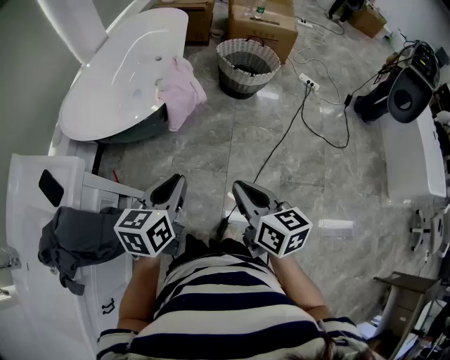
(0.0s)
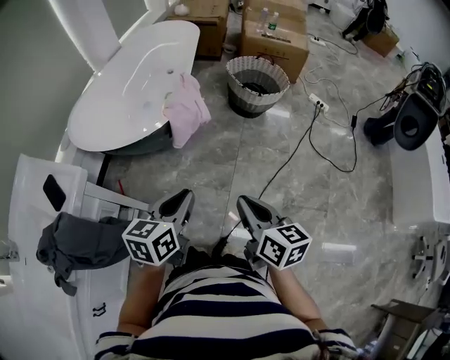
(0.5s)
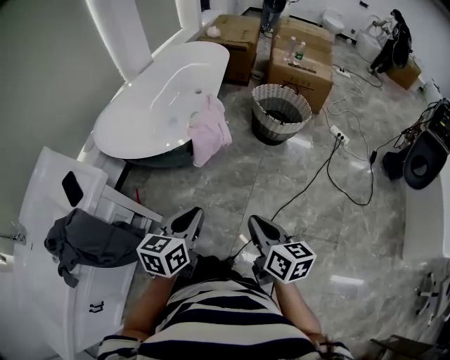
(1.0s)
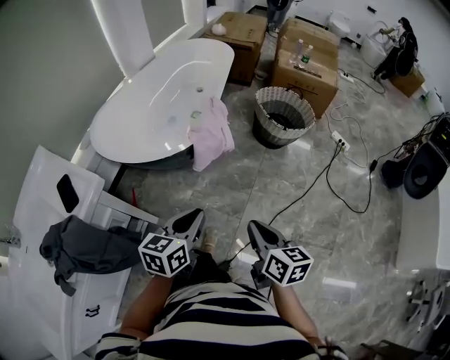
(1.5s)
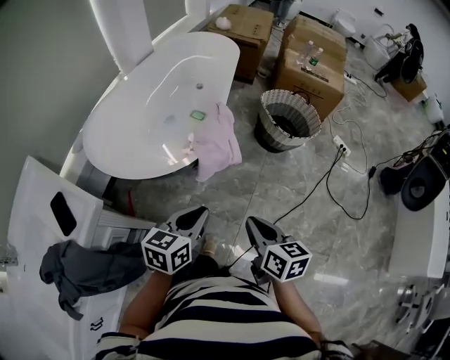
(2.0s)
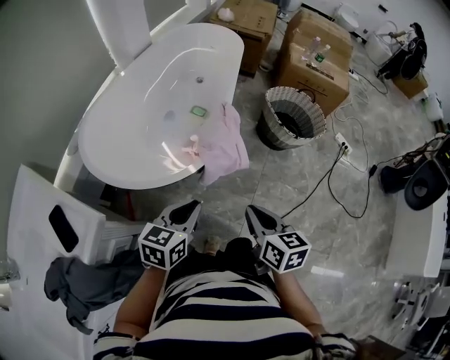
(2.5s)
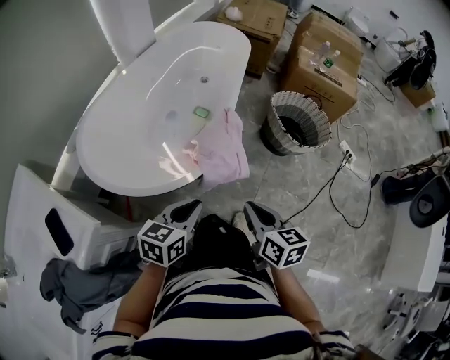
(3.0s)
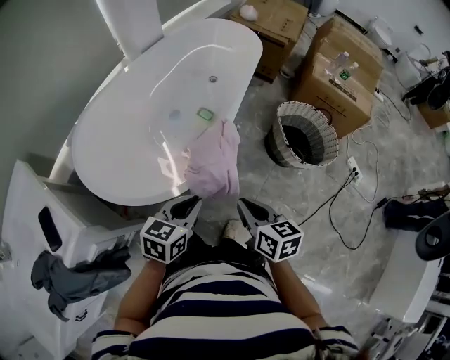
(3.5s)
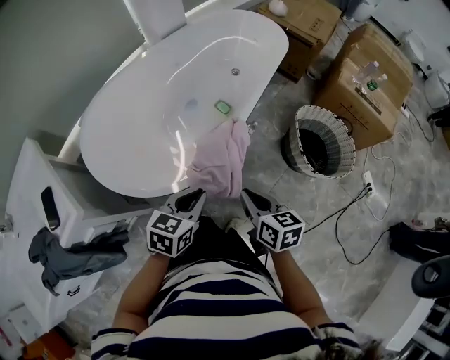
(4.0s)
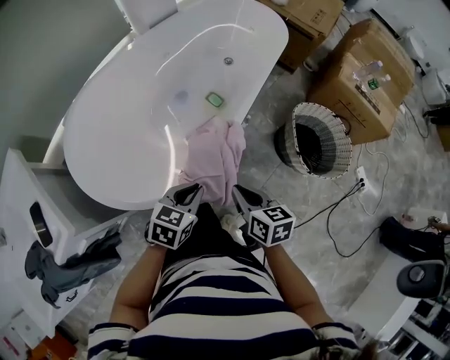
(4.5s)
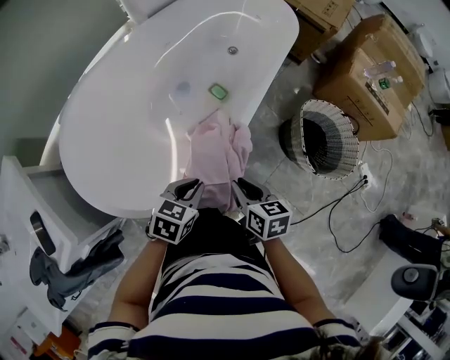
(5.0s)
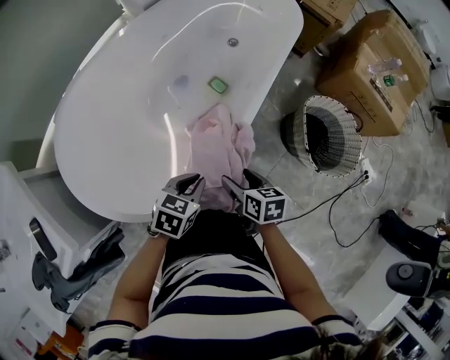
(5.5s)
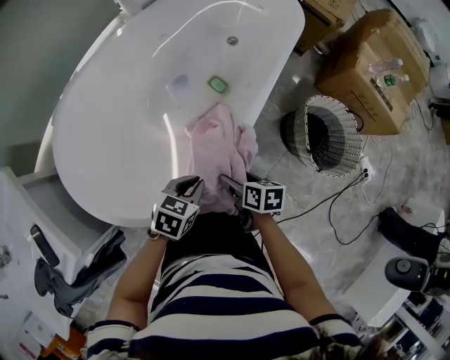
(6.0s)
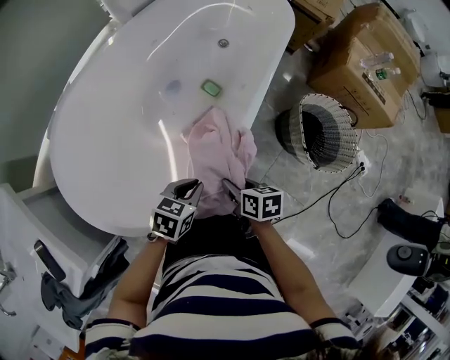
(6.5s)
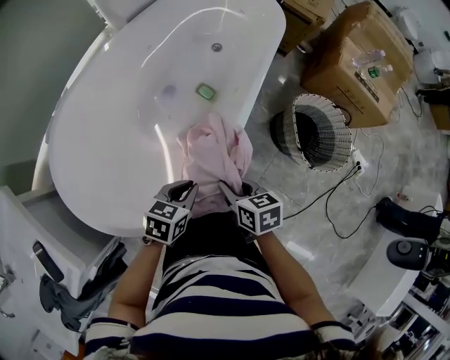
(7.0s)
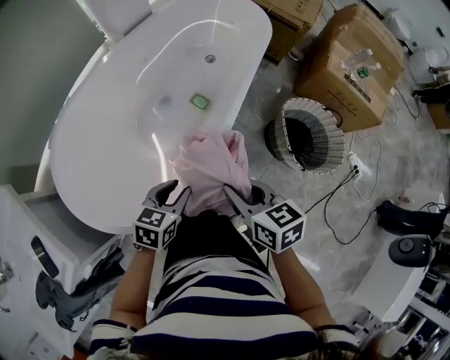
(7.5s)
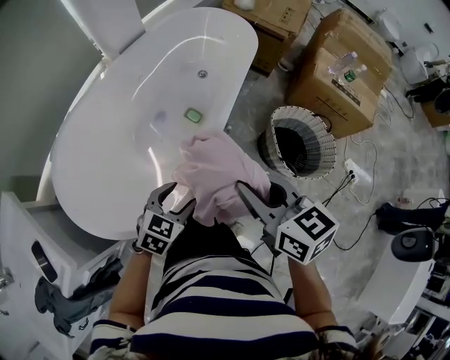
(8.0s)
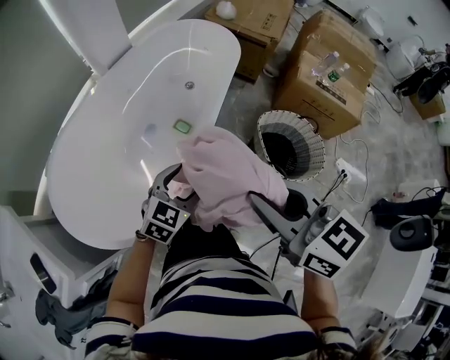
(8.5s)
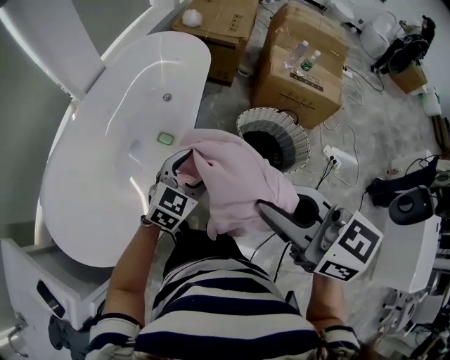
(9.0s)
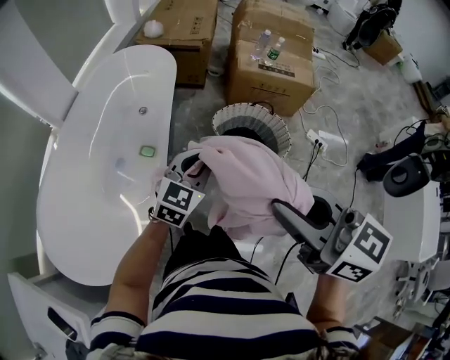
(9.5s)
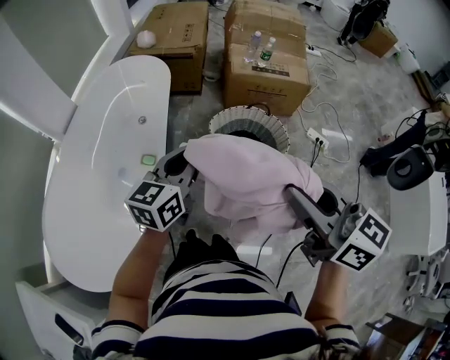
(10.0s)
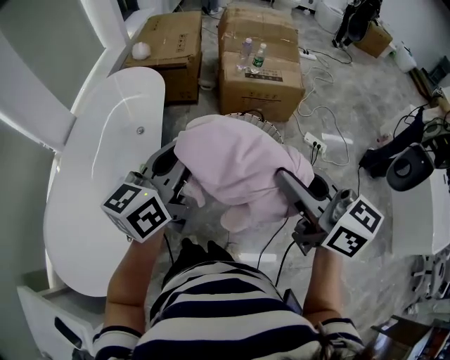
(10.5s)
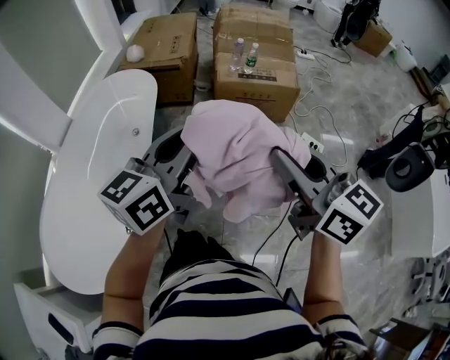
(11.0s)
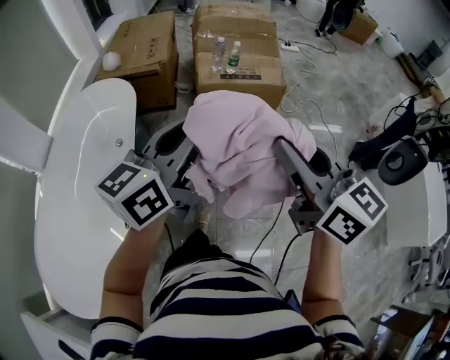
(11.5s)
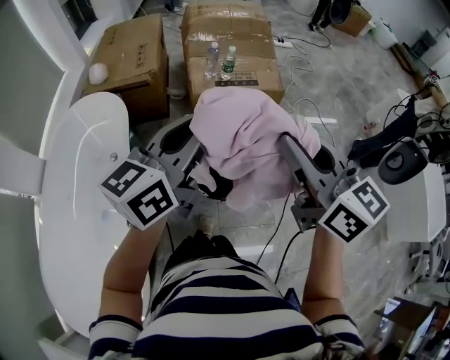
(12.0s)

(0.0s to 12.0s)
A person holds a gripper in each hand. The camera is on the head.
0.0s - 2.0s: The grippers both shift forward by roughly 15 cm.
2.0s - 4.0s: The grippers both shift forward by about 25 cm. The right gripper changes its angle by approximately 20 degrees. The left gripper changes its angle by roughly 20 degrees.
4.0s - 6.0s: Both grippers move downward and forward, about 15 cm. The right gripper changes its angle by approximately 30 degrees, and opens its fingers.
6.0s - 8.0s: The right gripper moves upward, roughly 30 cm, swivels some 40 degrees, and closes its fingers. The left gripper is displaced upward by roughly 5 cm, swivels about 20 degrees, and opens its fingers.
8.0s - 10.0s: The left gripper heads to the right, upward and forward, covering about 30 cm, points its fingers some 30 degrees further upward, and closes. The right gripper shifts roughly 25 cm to the right and upward, and swivels about 30 degrees.
10.0s - 12.0s: The left gripper shifts some 25 cm forward, to the right and upward, and rotates roughly 20 degrees. The right gripper is displaced forward and to the right by about 25 cm, and rotates about 20 degrees.

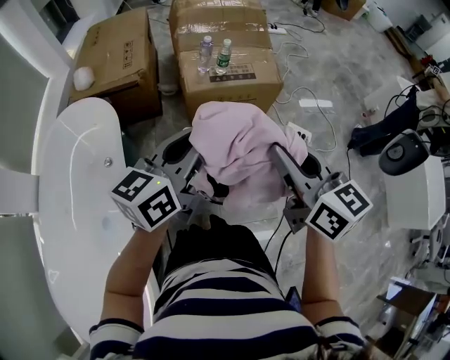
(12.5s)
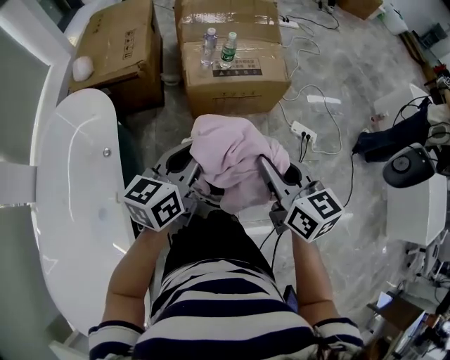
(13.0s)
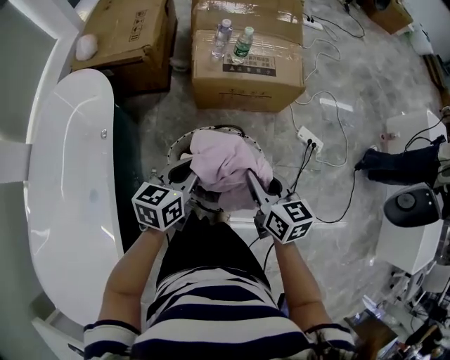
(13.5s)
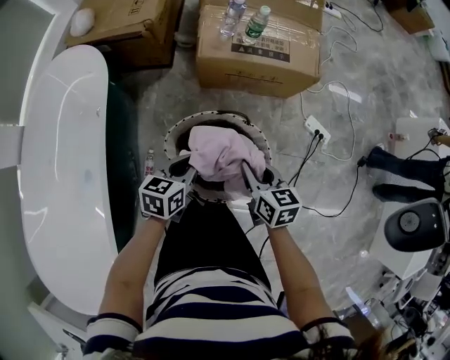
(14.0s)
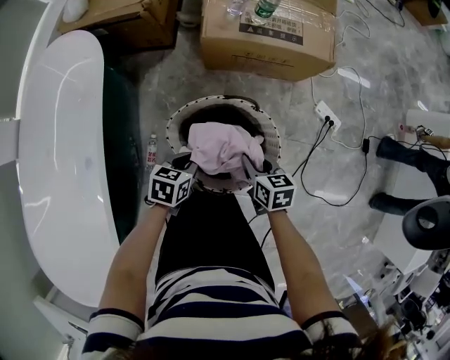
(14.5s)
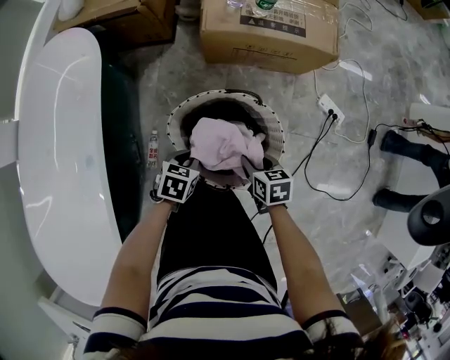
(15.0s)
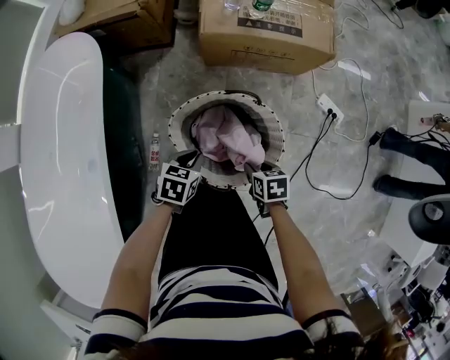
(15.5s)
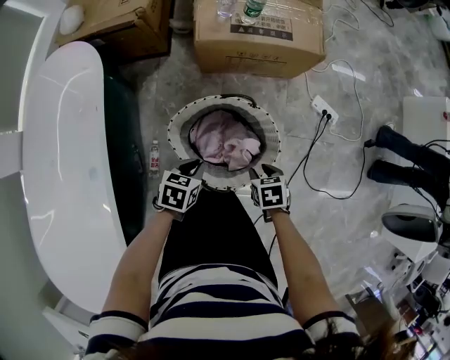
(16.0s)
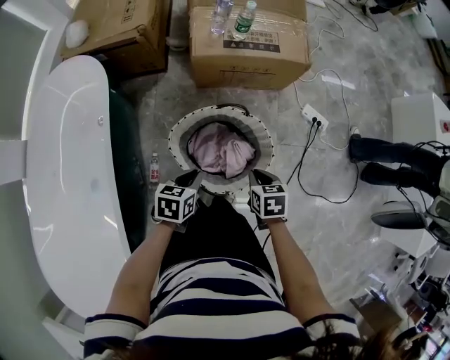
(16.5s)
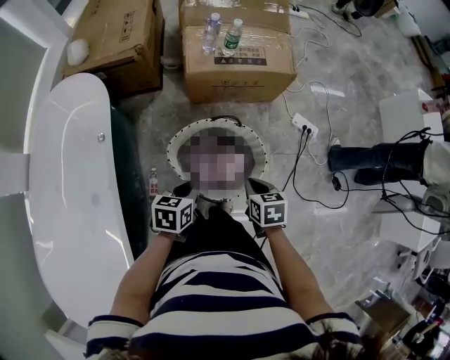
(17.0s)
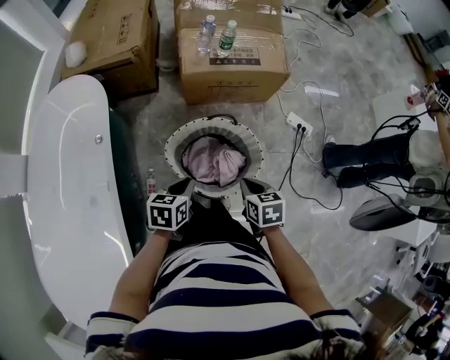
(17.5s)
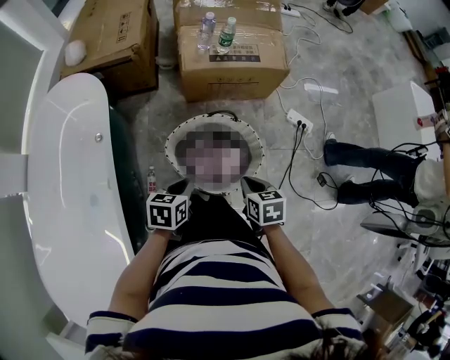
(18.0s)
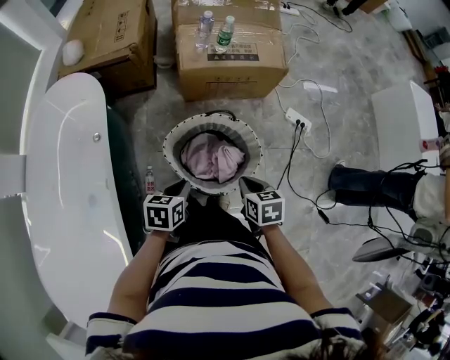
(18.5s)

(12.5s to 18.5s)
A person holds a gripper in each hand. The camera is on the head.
12.5s - 14.5s: Both grippers move downward, some 40 cm. The left gripper points its fingers some 50 degrees further downward, while the right gripper angles its fingers downward, by about 30 degrees.
14.5s - 16.5s: The right gripper moves backward, roughly 5 cm; the left gripper shifts some 5 cm upward.
16.5s - 18.5s: The right gripper moves upward, some 5 cm; the left gripper changes place by about 5 cm.

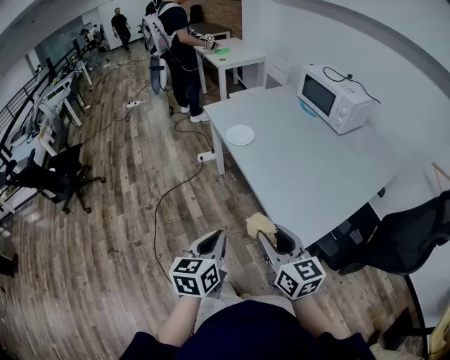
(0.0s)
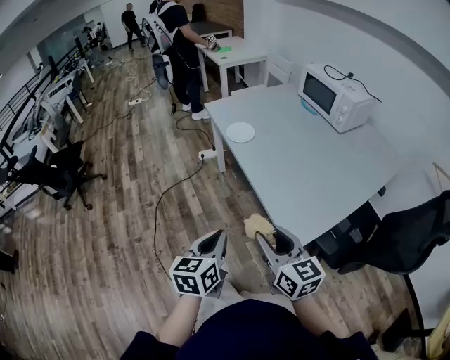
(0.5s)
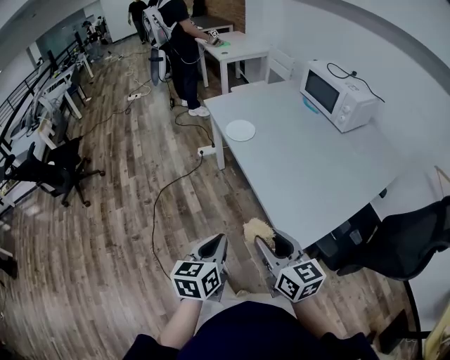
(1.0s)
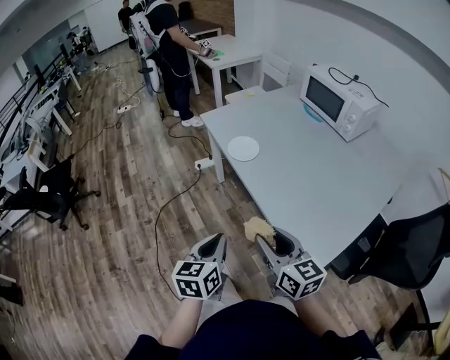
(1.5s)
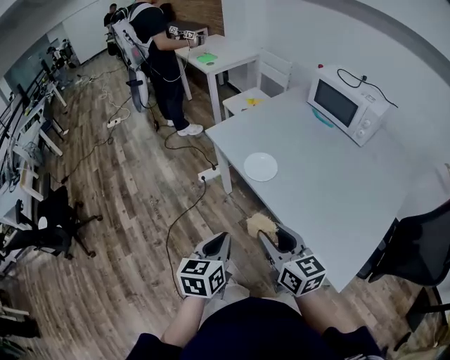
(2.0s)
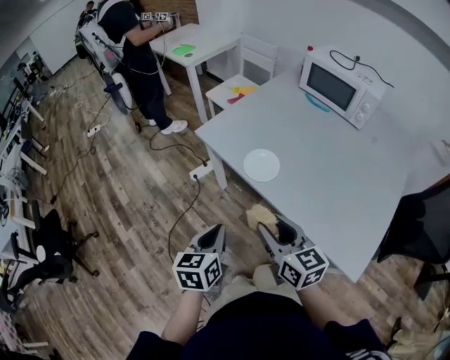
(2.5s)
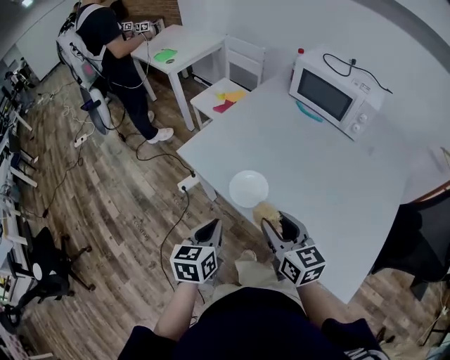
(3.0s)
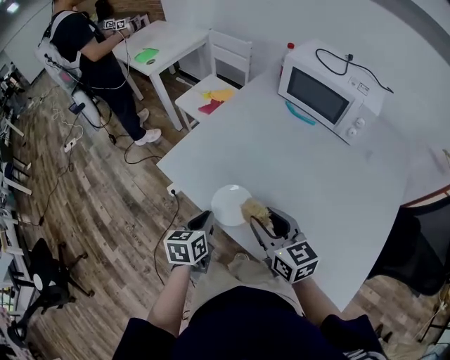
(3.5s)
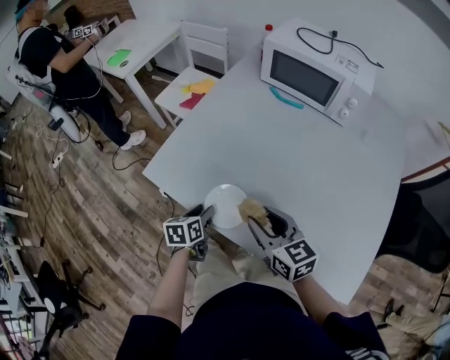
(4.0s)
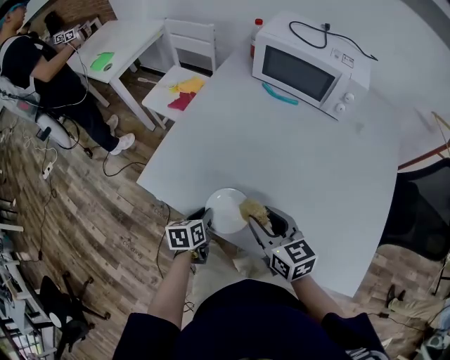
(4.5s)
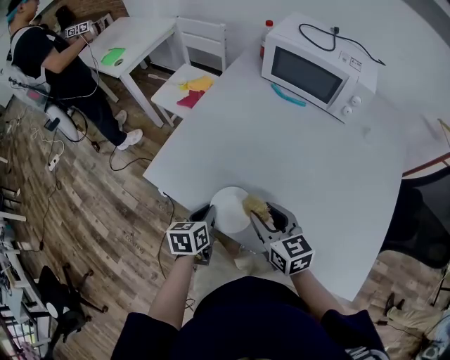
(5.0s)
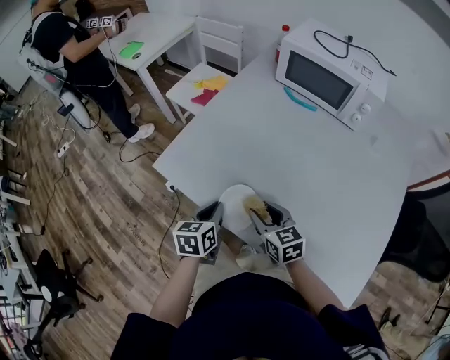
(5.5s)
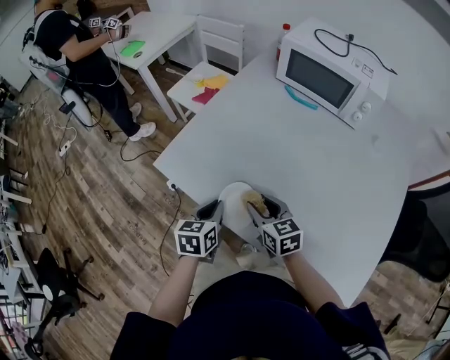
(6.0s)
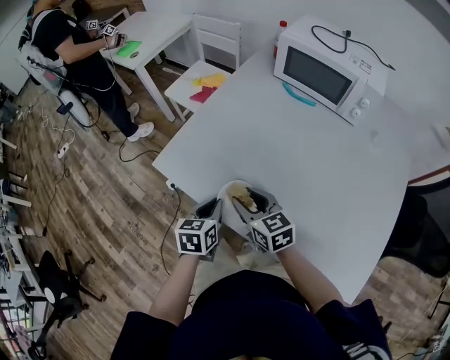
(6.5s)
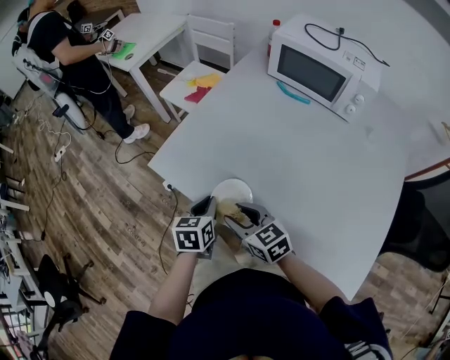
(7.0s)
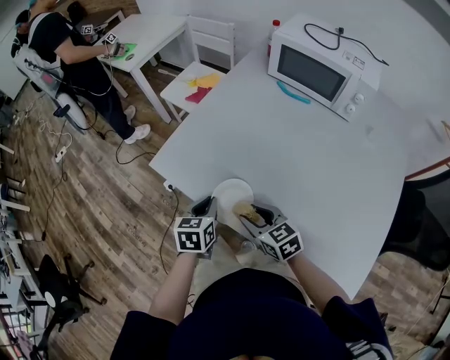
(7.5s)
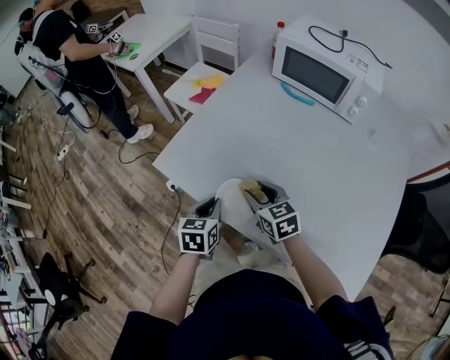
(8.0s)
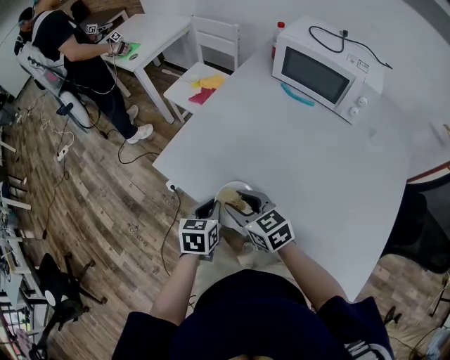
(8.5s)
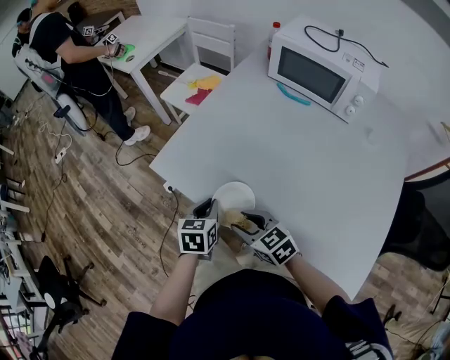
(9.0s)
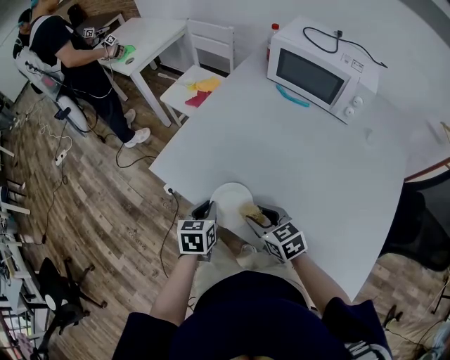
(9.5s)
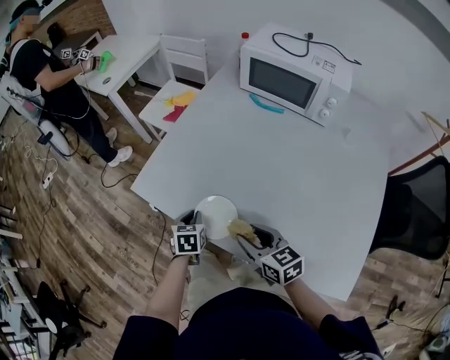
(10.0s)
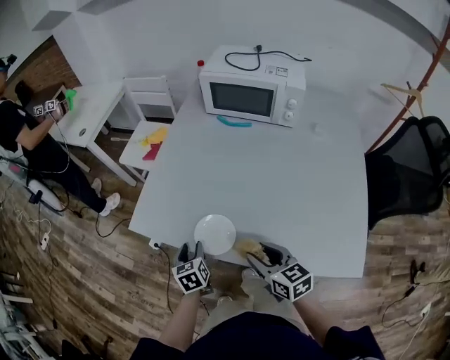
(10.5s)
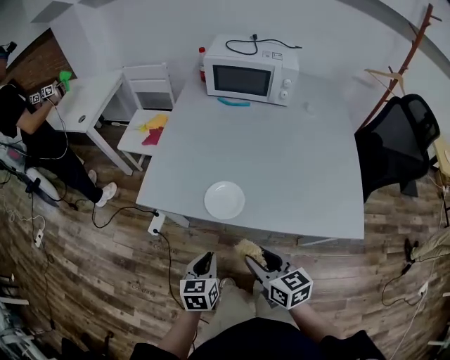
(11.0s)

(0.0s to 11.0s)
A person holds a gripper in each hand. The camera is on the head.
0.0s - 2.0s: Both grippers travel together forward and to the left, some 25 cm.
2.0s - 3.5s: The two grippers go about 30 cm forward.
3.5s - 5.5s: The right gripper goes approximately 10 cm downward. The left gripper moves roughly 10 cm downward and comes back, and opens and closes again.
7.5s - 9.0s: The right gripper goes forward and returns, about 5 cm each way.
9.0s - 11.0s: The right gripper moves some 15 cm, and swivels some 50 degrees. The left gripper shifts by some 15 cm, and opens and closes again.
